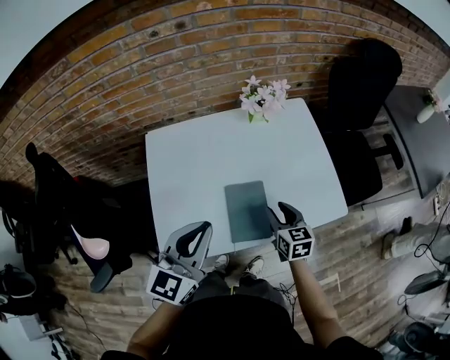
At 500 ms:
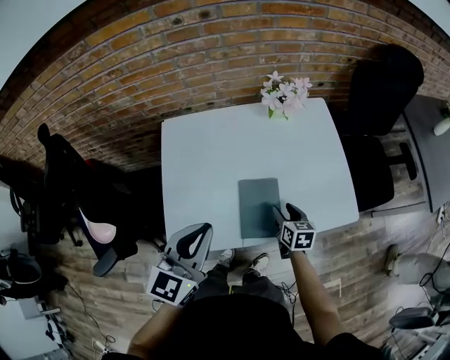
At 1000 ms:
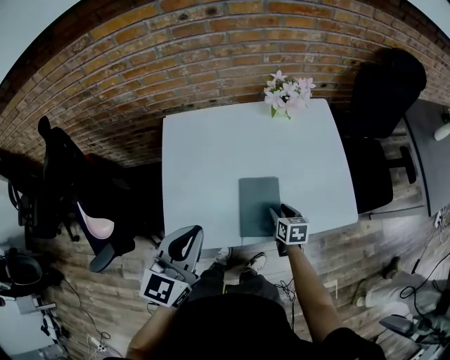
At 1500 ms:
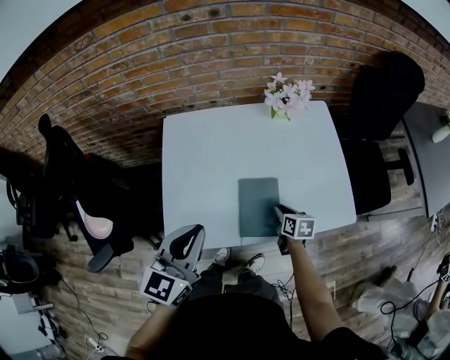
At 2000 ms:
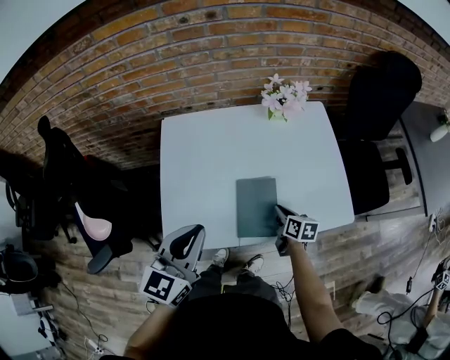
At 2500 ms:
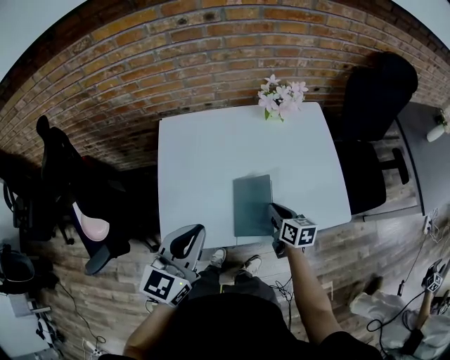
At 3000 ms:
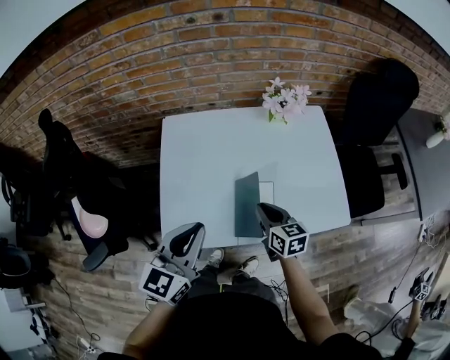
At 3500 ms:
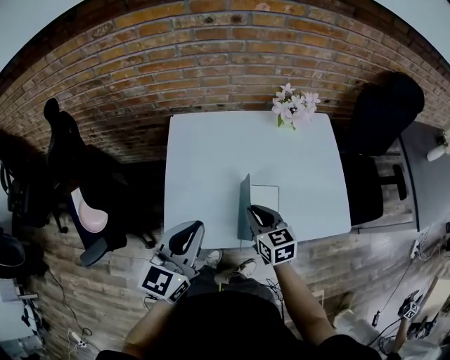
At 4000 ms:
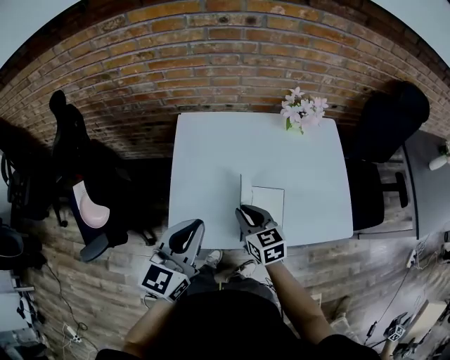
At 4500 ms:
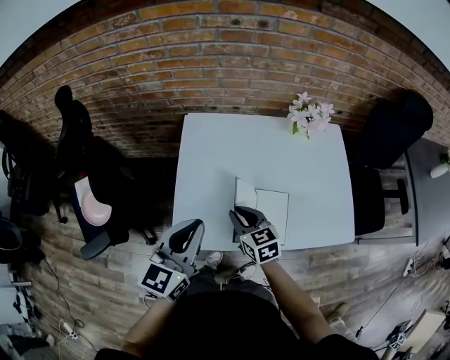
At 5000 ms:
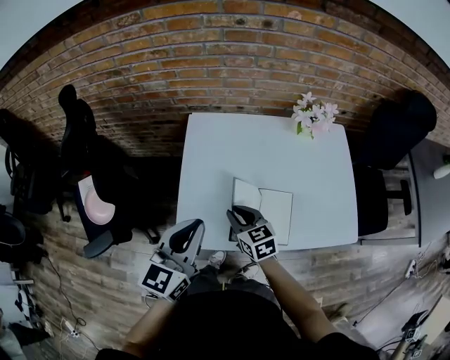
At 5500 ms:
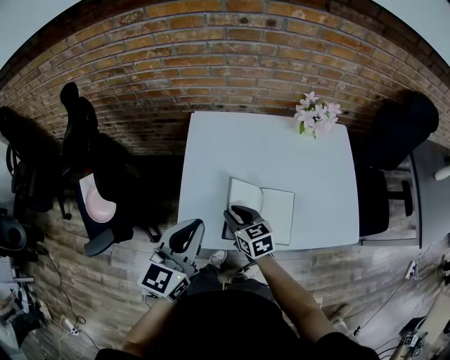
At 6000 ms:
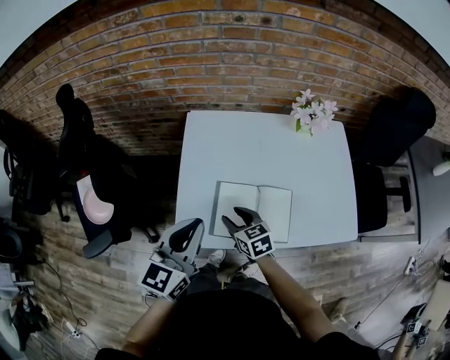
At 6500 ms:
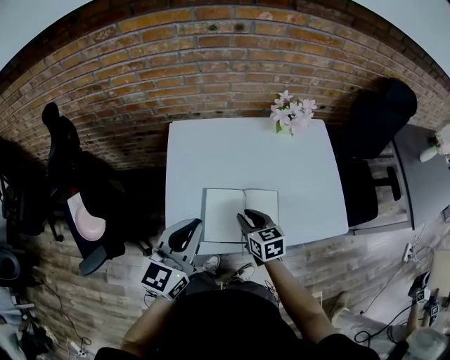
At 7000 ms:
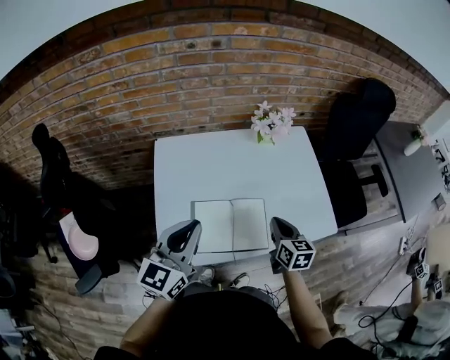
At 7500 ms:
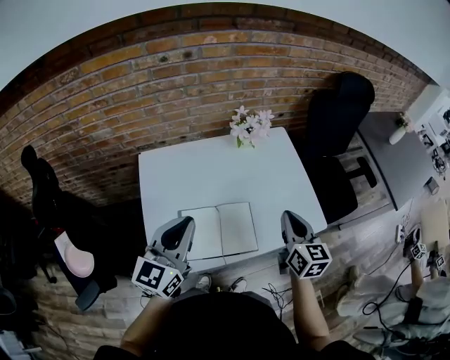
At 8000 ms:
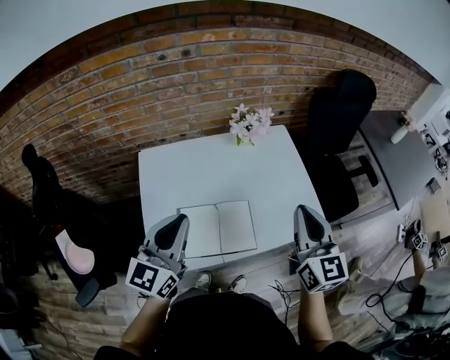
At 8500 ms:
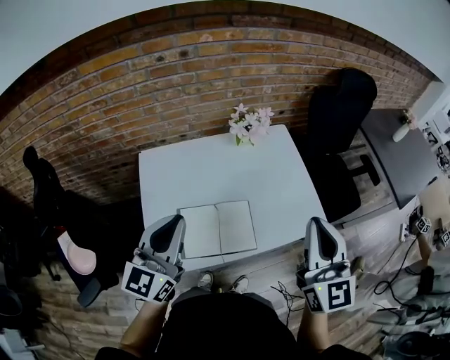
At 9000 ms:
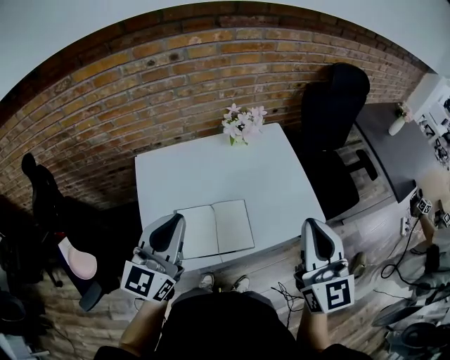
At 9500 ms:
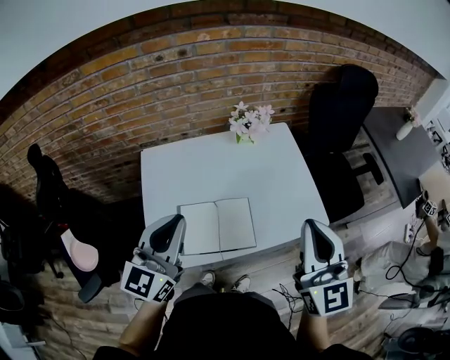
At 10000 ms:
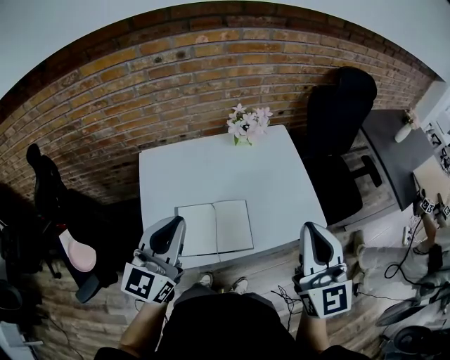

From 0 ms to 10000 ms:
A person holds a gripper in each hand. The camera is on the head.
From 0 ms to 2000 ms: The right gripper shifts roughly 10 cm downward, changes its angle by approximately 30 degrees, and closes; the left gripper ends up about 5 cm from where it was.
From 2000 ms to 4000 ms: The right gripper travels to the left and upward by approximately 25 cm, and turns by about 40 degrees, while the left gripper moves to the left, some 5 cm.
From 4000 ms to 6000 ms: The right gripper heads to the left and downward, covering roughly 10 cm, and opens.
From 6000 ms to 8000 ms: The right gripper is displaced upward by approximately 30 cm, points its fingers some 30 degrees further upward, and closes up. Meanwhile the left gripper changes place by some 10 cm.
From 8000 ms to 10000 ms: The right gripper is displaced backward and upward by roughly 10 cm.

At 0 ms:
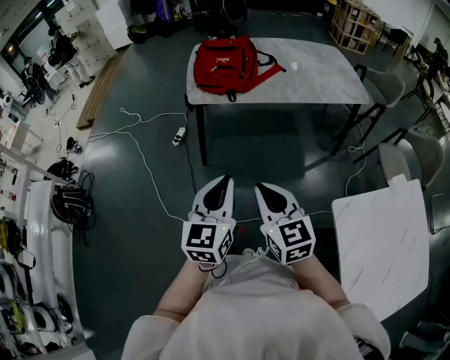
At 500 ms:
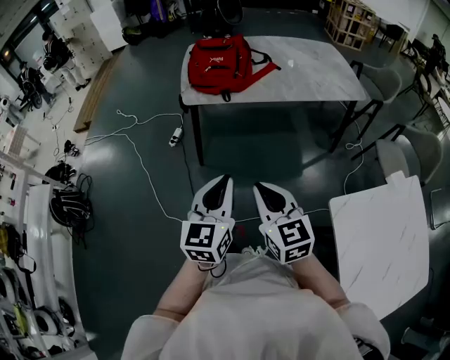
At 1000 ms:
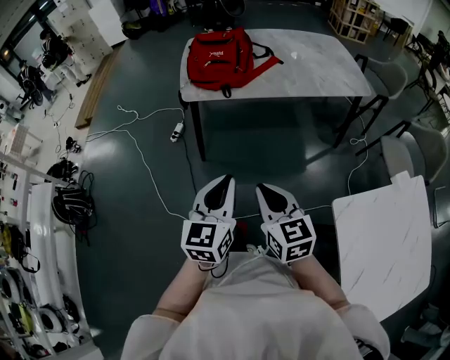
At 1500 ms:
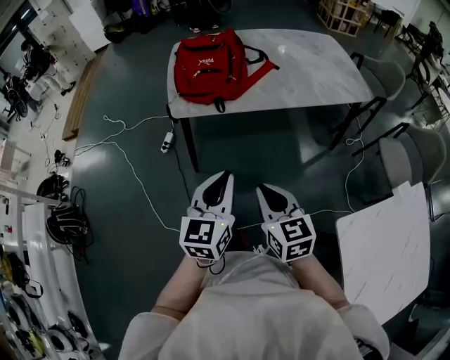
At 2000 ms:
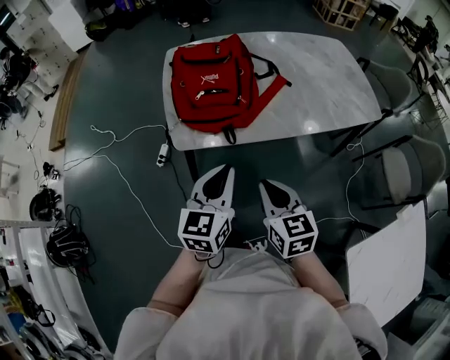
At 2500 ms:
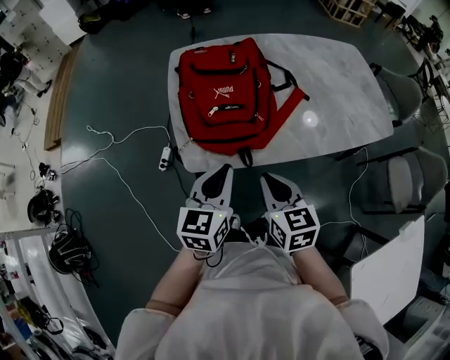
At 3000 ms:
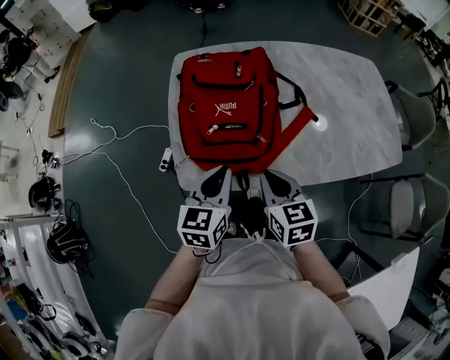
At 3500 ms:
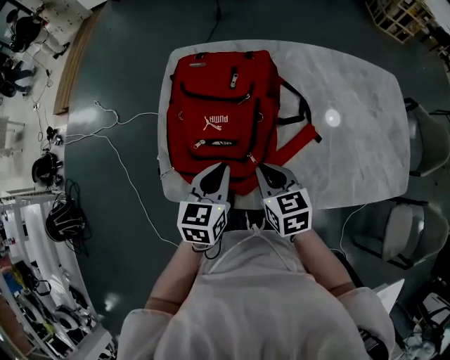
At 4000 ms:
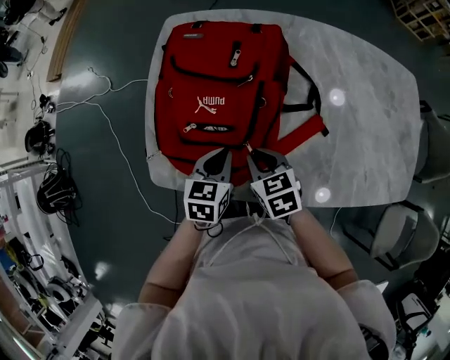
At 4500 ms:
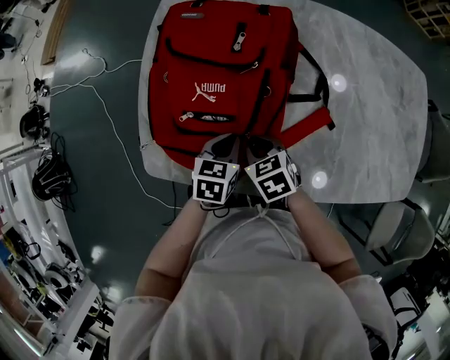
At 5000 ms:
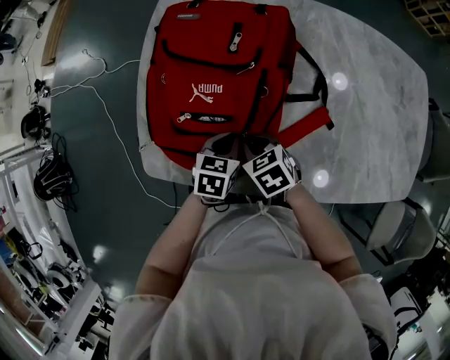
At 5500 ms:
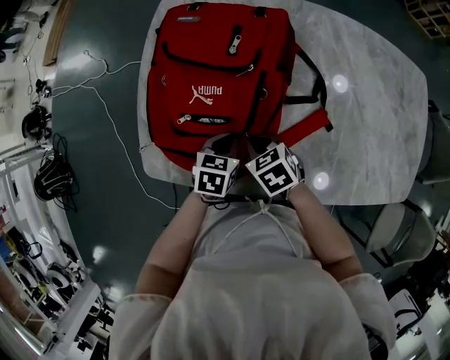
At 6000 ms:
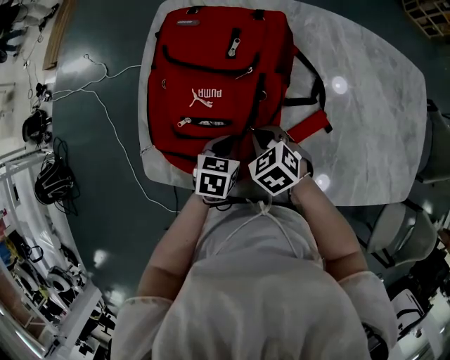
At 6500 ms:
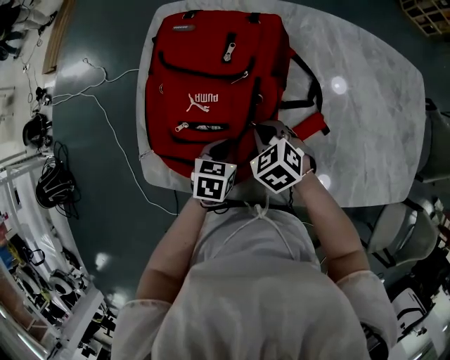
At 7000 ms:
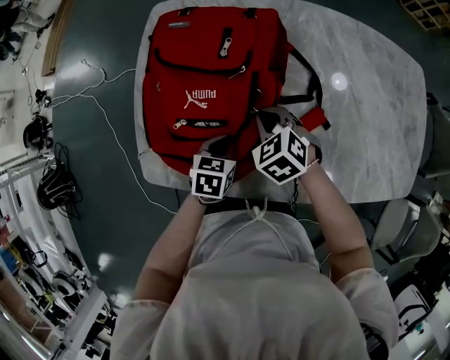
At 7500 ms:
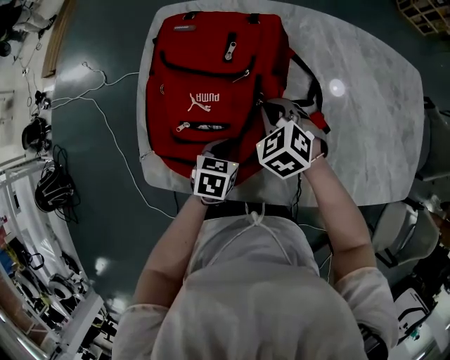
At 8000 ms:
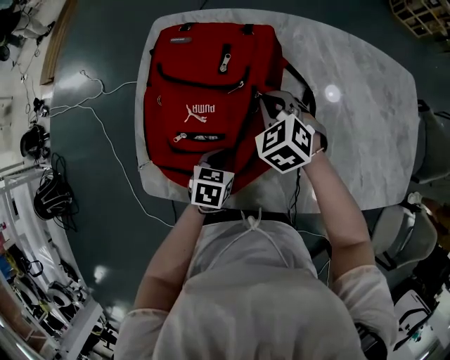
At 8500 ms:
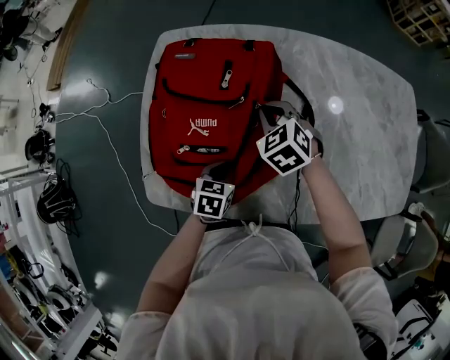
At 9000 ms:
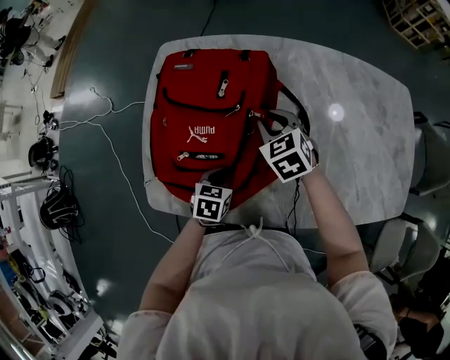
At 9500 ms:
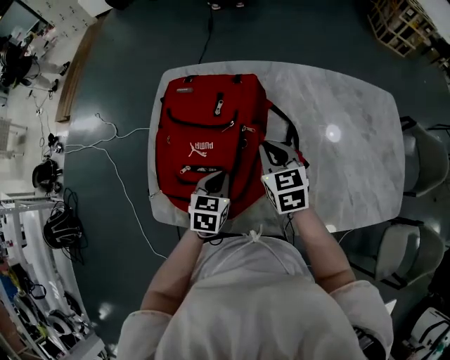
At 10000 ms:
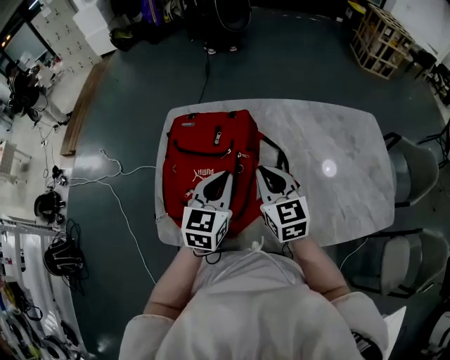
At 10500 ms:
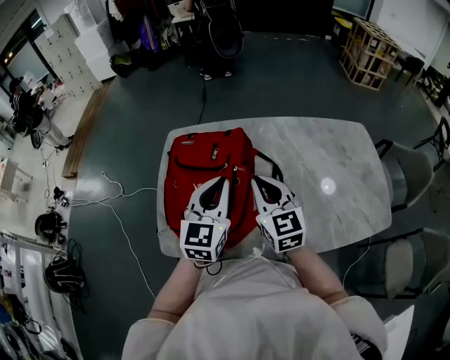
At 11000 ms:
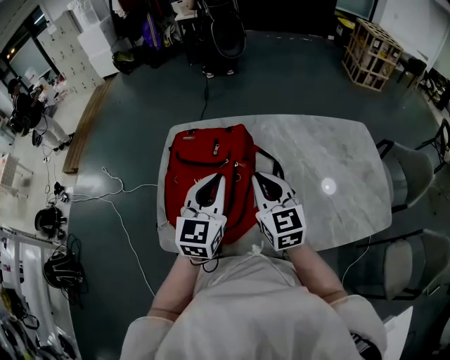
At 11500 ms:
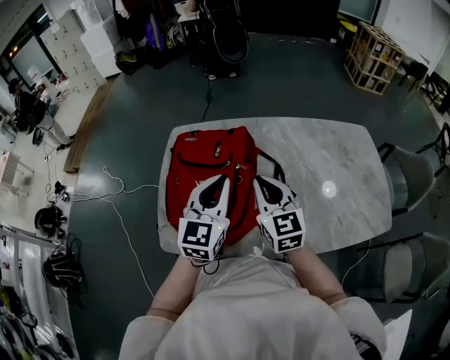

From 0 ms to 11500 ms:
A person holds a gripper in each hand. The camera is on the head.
From 0 ms to 2000 ms: Both grippers move forward, approximately 35 cm.
From 2000 ms to 4000 ms: The two grippers go about 35 cm forward and downward. The left gripper swivels some 30 degrees; the right gripper changes its angle by about 40 degrees.
From 4000 ms to 6000 ms: The right gripper moves approximately 5 cm, and changes its angle by approximately 30 degrees. Meanwhile the left gripper is displaced downward by roughly 10 cm.
From 6000 ms to 7500 ms: The right gripper heads forward, covering about 10 cm.
From 7500 ms to 9500 ms: Both grippers travel together upward, about 10 cm. The right gripper turns by some 40 degrees.
From 9500 ms to 11500 ms: The left gripper is displaced upward by some 25 cm, and angles its fingers upward, by about 40 degrees; the right gripper heads upward and backward, covering approximately 15 cm, and rotates roughly 20 degrees.

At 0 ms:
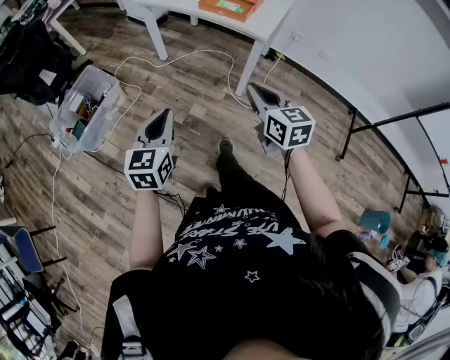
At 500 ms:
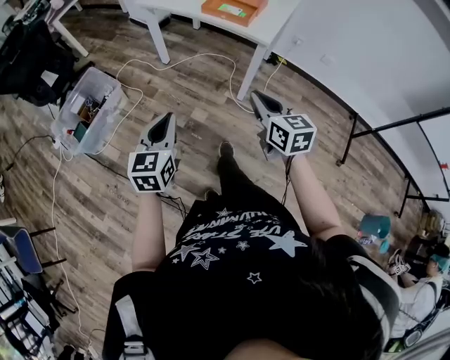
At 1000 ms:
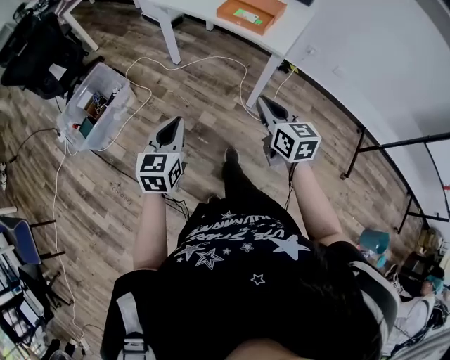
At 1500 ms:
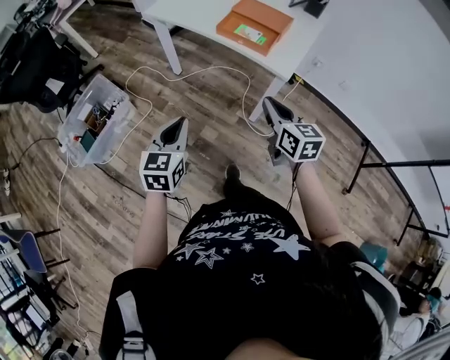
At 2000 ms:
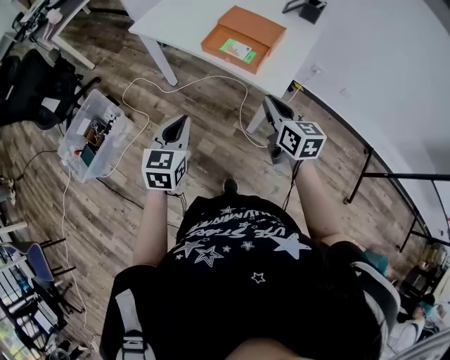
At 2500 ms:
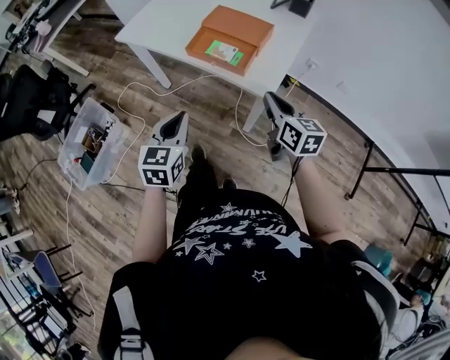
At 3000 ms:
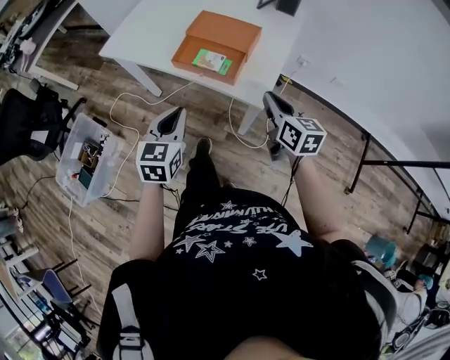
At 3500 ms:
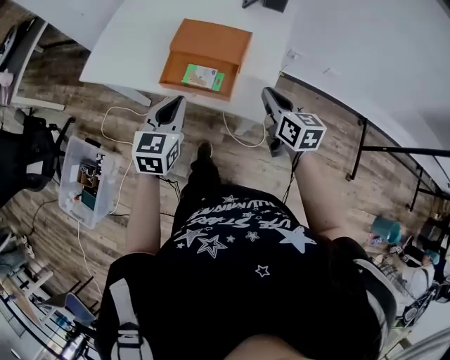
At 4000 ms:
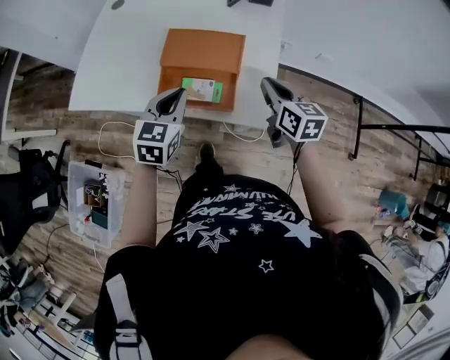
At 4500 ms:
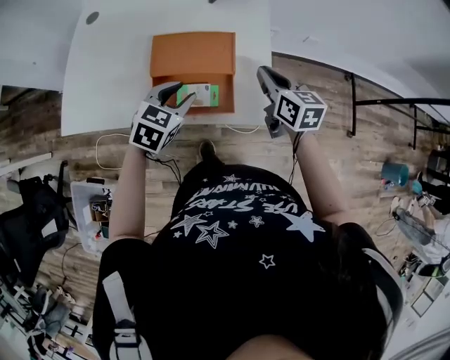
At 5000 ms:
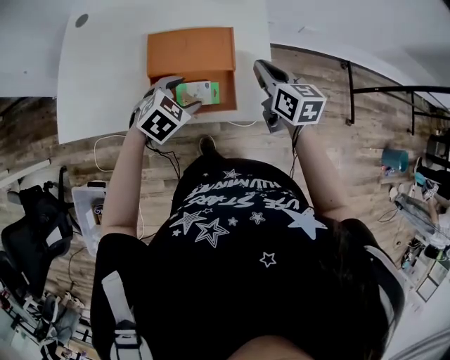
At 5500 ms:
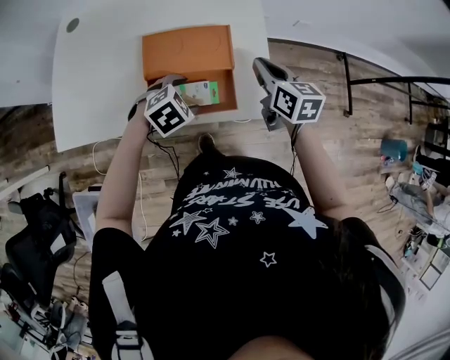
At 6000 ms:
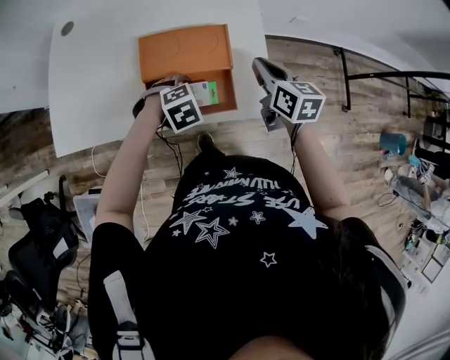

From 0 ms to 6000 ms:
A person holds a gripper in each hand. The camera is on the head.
From 0 ms to 2000 ms: Both grippers travel together forward, roughly 30 cm.
From 2000 ms to 4000 ms: Both grippers move forward, approximately 30 cm. The right gripper rotates some 20 degrees, while the left gripper rotates about 30 degrees.
From 4000 ms to 6000 ms: The left gripper travels downward by some 15 cm, angles its fingers downward, by some 50 degrees, and opens its fingers.
